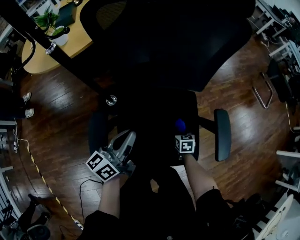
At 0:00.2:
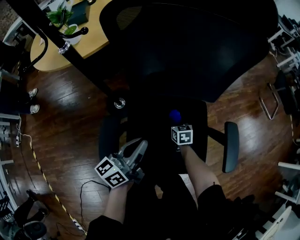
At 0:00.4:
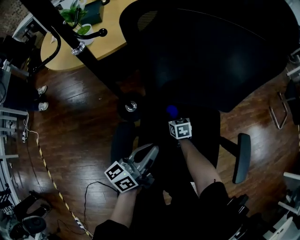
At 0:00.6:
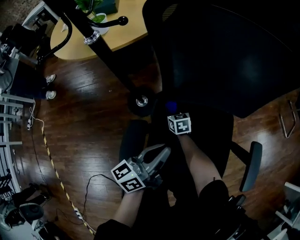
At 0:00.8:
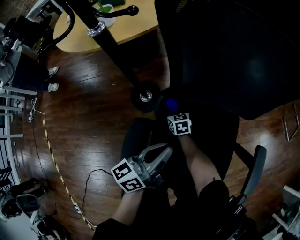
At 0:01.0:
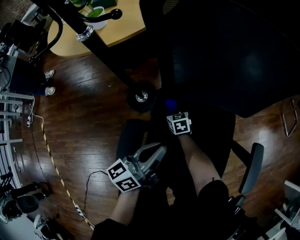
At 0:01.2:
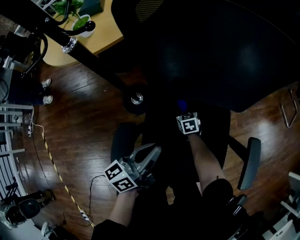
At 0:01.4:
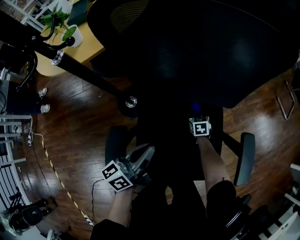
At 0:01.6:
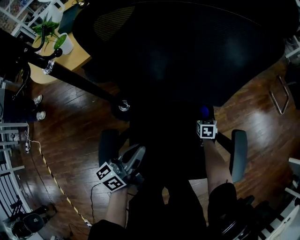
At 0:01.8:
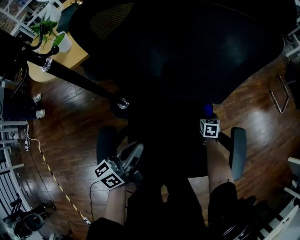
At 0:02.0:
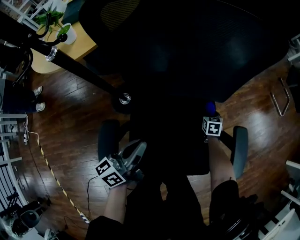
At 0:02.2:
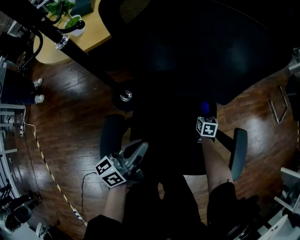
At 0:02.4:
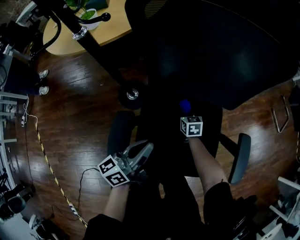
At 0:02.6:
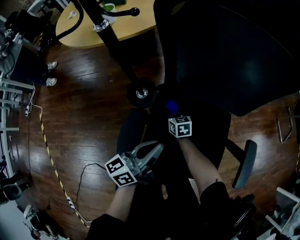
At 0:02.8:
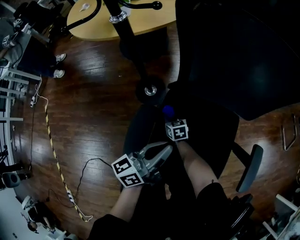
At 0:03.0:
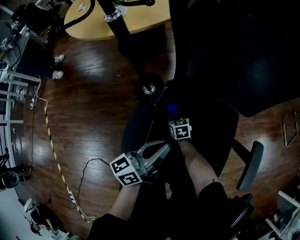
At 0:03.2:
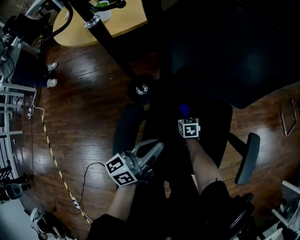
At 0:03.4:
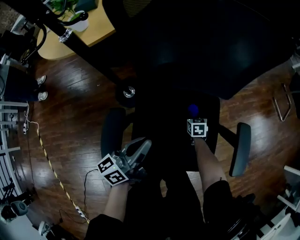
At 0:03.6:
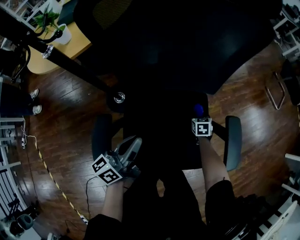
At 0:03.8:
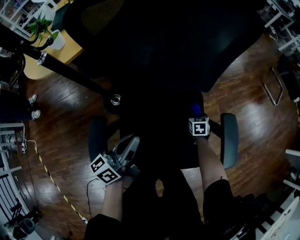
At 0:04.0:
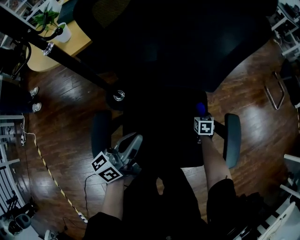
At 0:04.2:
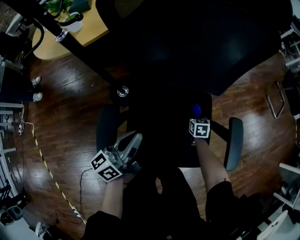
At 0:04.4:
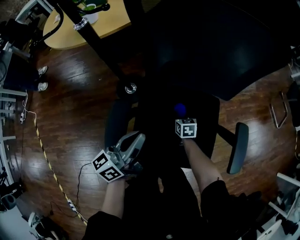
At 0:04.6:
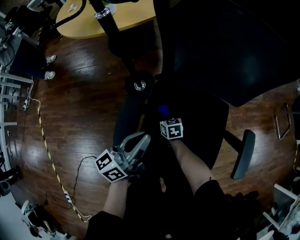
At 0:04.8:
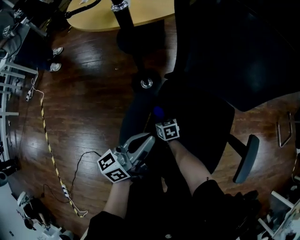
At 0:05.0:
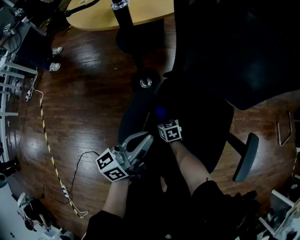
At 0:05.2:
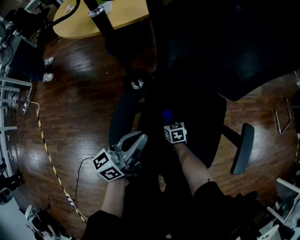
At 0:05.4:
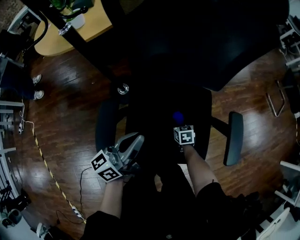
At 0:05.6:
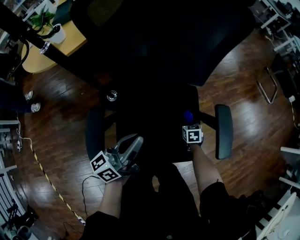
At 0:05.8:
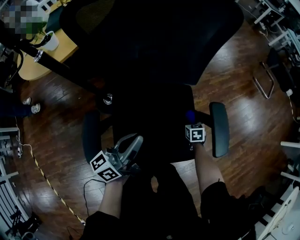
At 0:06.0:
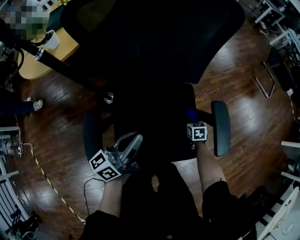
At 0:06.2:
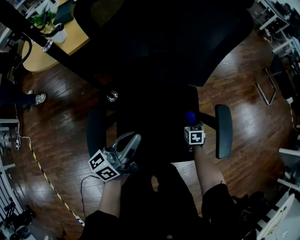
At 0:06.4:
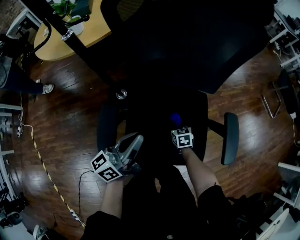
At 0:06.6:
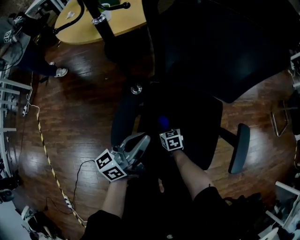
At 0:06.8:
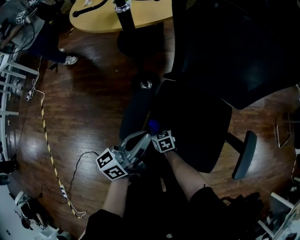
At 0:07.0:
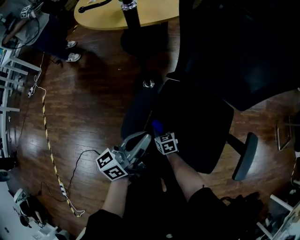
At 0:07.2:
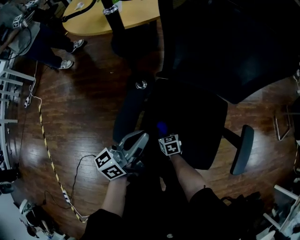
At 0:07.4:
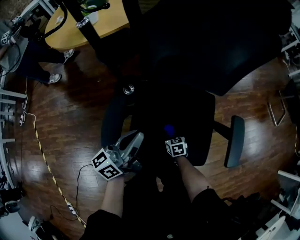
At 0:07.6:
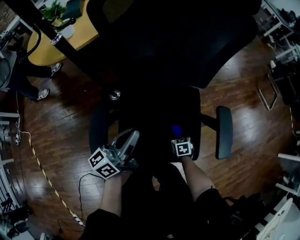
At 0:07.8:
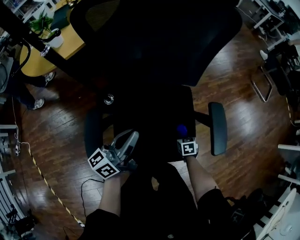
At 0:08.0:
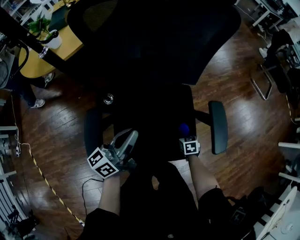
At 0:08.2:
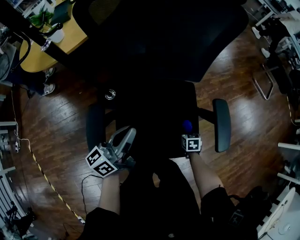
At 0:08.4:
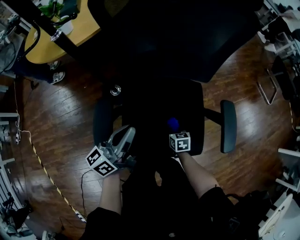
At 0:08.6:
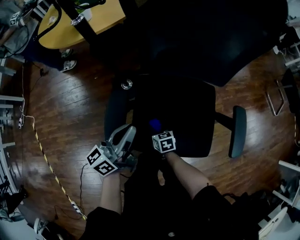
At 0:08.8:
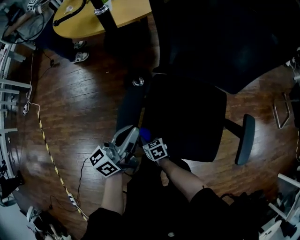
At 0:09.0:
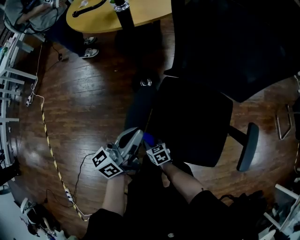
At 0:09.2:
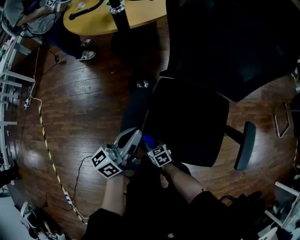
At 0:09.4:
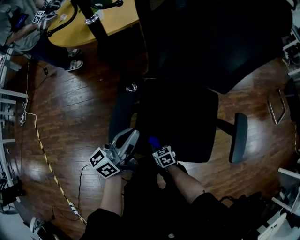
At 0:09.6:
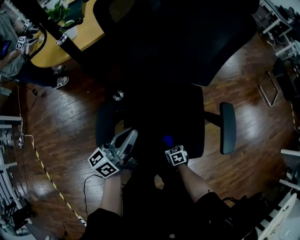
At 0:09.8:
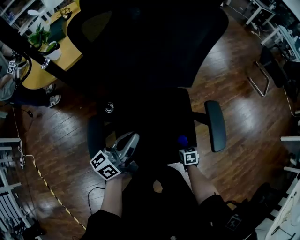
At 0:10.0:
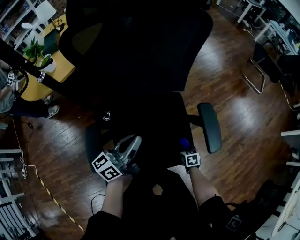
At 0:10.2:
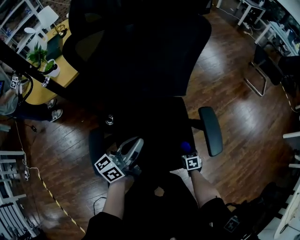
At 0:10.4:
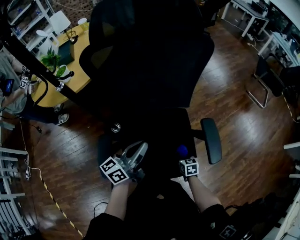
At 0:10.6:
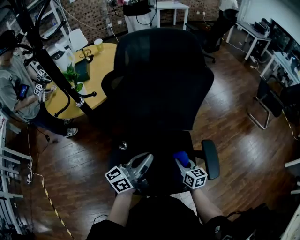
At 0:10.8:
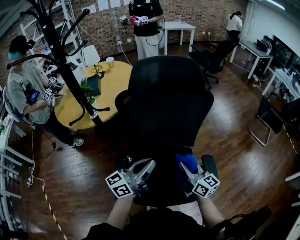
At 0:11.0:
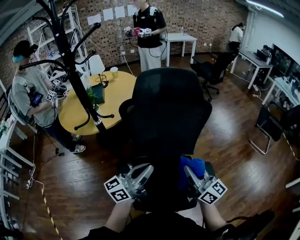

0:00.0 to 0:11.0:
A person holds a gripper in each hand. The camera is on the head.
0:00.0 to 0:01.6: The right gripper shifts some 15 cm forward, and travels to the left and back again, about 30 cm each way. Meanwhile the left gripper ends up approximately 5 cm from where it was.
0:01.6 to 0:03.2: The left gripper shifts by roughly 5 cm, while the right gripper turns by approximately 20 degrees.
0:03.2 to 0:04.8: The left gripper ends up roughly 5 cm from where it was, while the right gripper shifts by roughly 20 cm, and changes its angle by about 20 degrees.
0:04.8 to 0:06.2: The left gripper changes place by roughly 10 cm, while the right gripper ends up approximately 40 cm from where it was, and swivels approximately 40 degrees.
0:07.8 to 0:09.4: The right gripper shifts by some 30 cm, and rotates approximately 30 degrees; the left gripper shifts by approximately 15 cm.
0:09.4 to 0:11.0: The left gripper is displaced upward by about 25 cm, and swivels approximately 30 degrees. Meanwhile the right gripper travels upward by approximately 50 cm, and tips its fingers upward by some 70 degrees.

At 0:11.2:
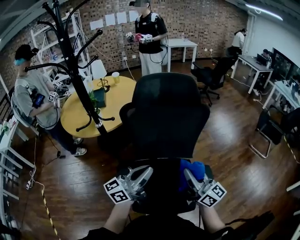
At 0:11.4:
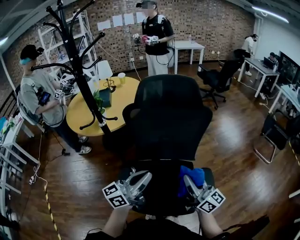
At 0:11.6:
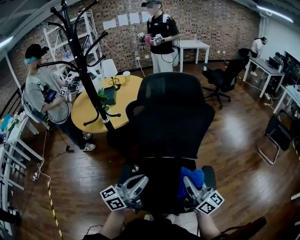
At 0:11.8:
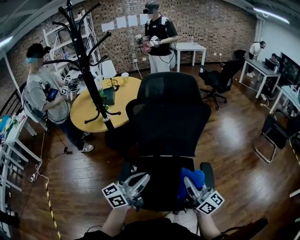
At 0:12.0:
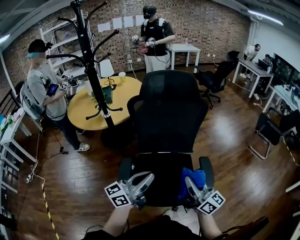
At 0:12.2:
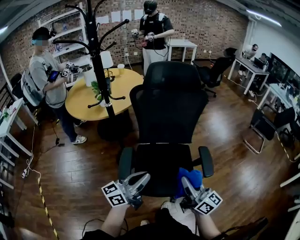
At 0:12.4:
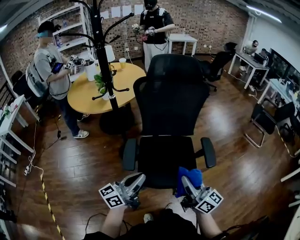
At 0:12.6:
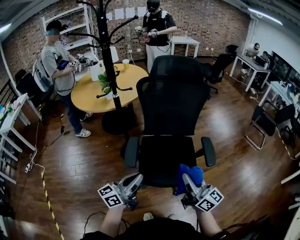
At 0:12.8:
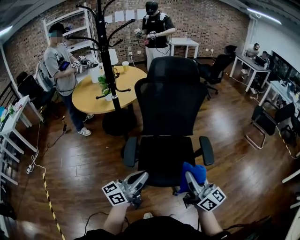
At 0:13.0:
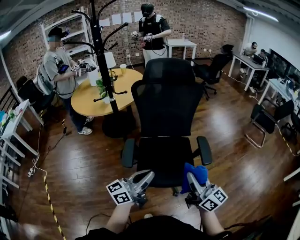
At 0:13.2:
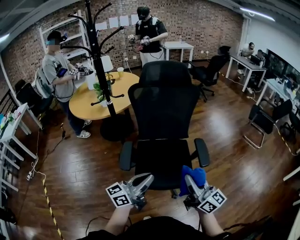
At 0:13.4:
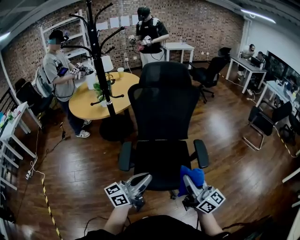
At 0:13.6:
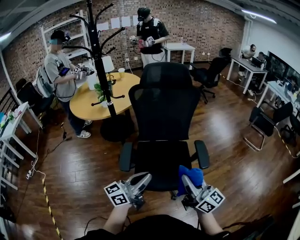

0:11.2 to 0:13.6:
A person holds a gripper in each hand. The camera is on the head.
0:11.2 to 0:12.4: Both grippers move backward, some 25 cm.
0:12.4 to 0:13.6: The right gripper moves about 5 cm, while the left gripper shifts approximately 5 cm to the right.

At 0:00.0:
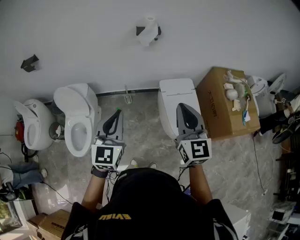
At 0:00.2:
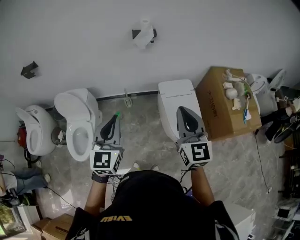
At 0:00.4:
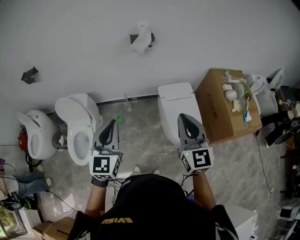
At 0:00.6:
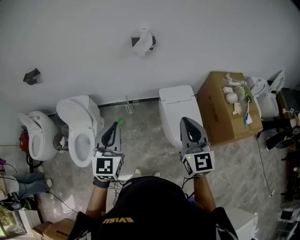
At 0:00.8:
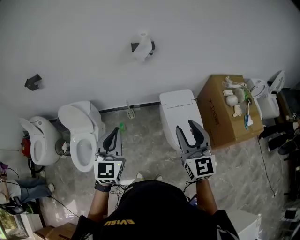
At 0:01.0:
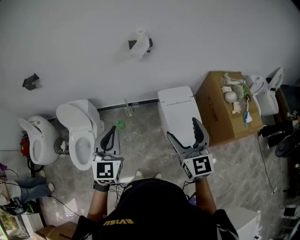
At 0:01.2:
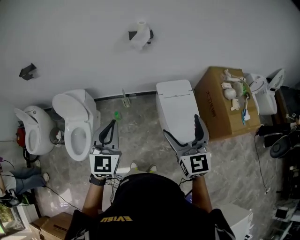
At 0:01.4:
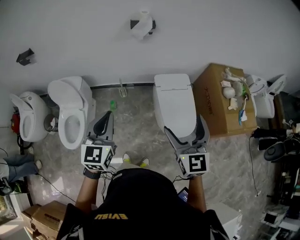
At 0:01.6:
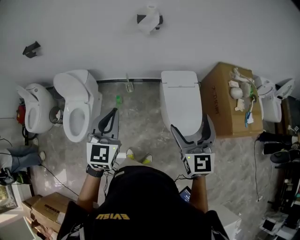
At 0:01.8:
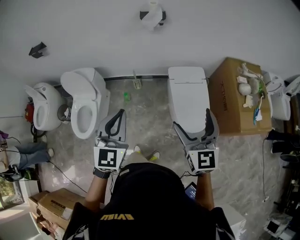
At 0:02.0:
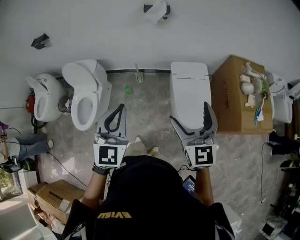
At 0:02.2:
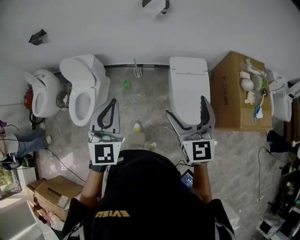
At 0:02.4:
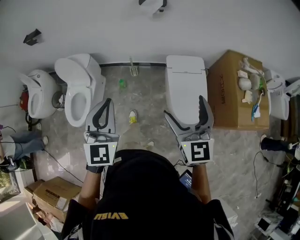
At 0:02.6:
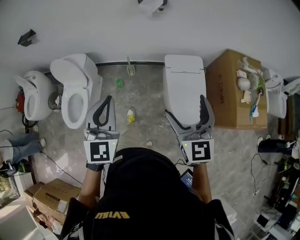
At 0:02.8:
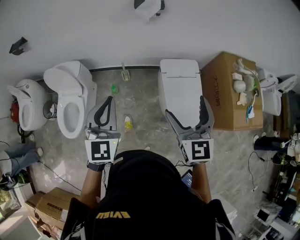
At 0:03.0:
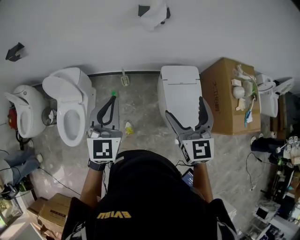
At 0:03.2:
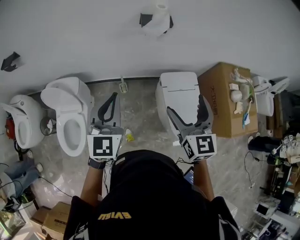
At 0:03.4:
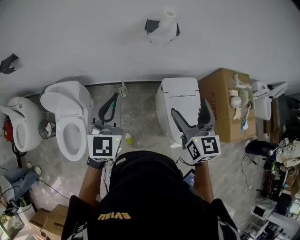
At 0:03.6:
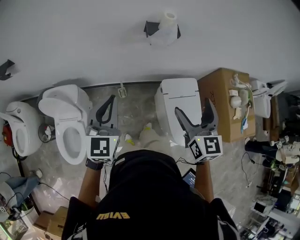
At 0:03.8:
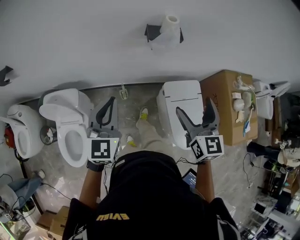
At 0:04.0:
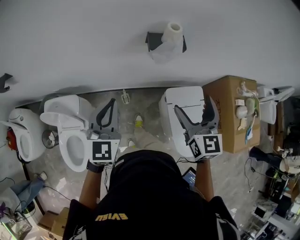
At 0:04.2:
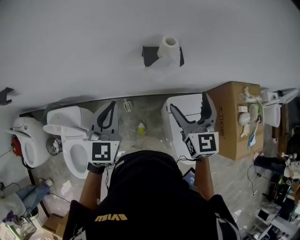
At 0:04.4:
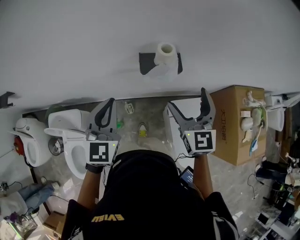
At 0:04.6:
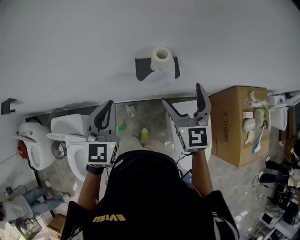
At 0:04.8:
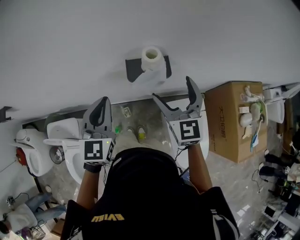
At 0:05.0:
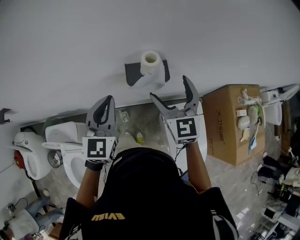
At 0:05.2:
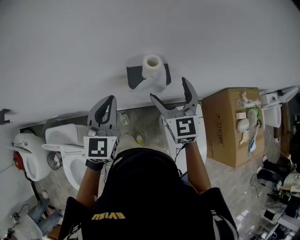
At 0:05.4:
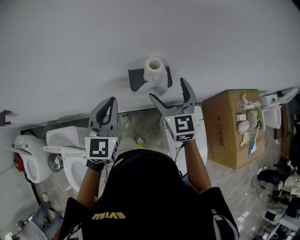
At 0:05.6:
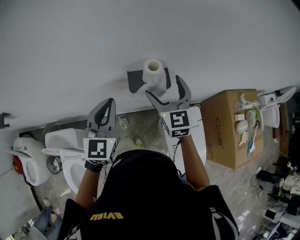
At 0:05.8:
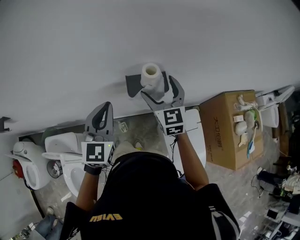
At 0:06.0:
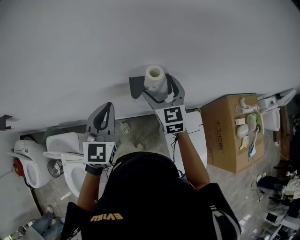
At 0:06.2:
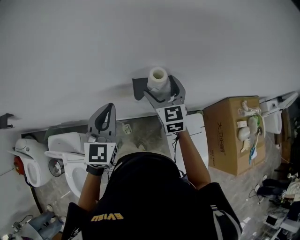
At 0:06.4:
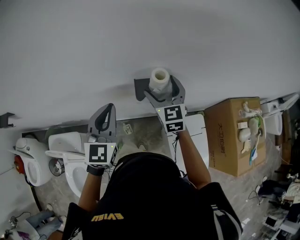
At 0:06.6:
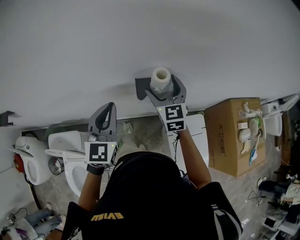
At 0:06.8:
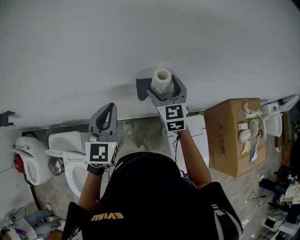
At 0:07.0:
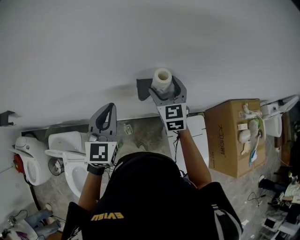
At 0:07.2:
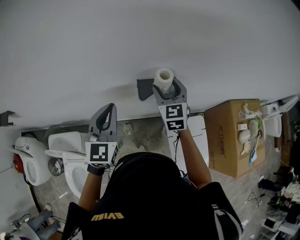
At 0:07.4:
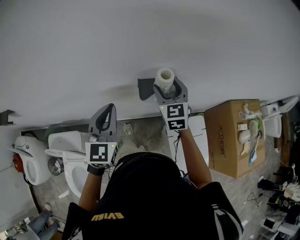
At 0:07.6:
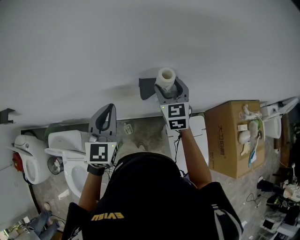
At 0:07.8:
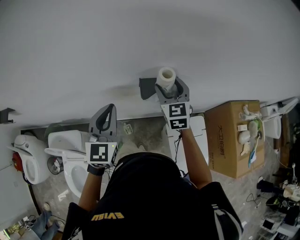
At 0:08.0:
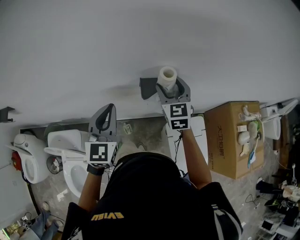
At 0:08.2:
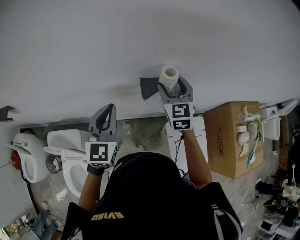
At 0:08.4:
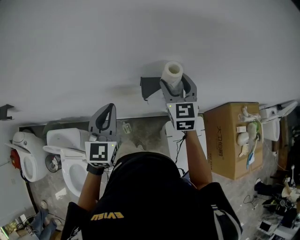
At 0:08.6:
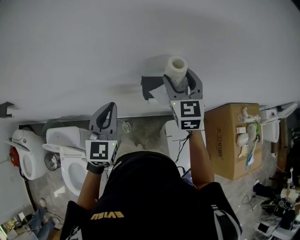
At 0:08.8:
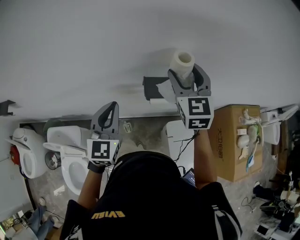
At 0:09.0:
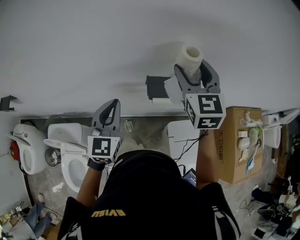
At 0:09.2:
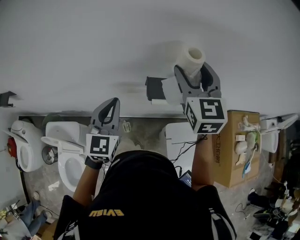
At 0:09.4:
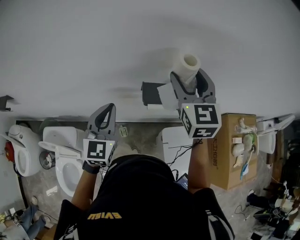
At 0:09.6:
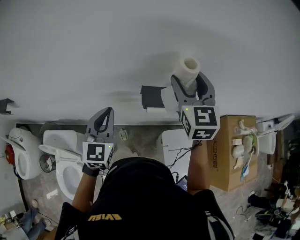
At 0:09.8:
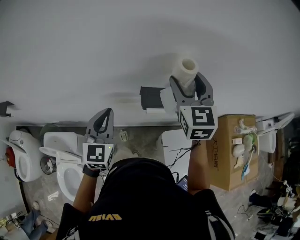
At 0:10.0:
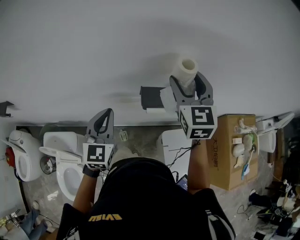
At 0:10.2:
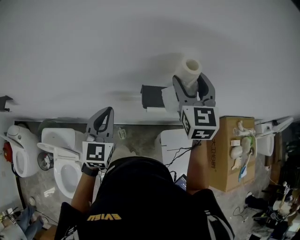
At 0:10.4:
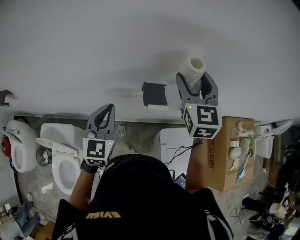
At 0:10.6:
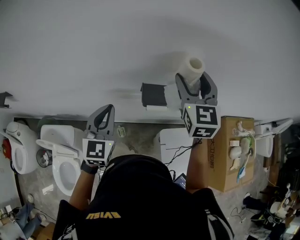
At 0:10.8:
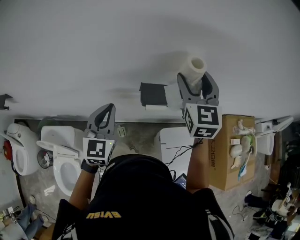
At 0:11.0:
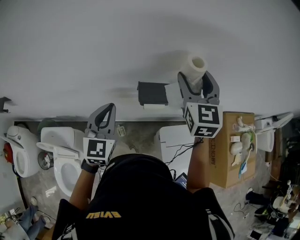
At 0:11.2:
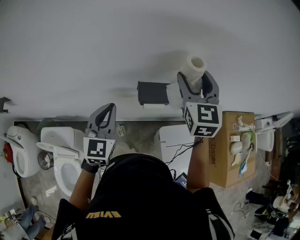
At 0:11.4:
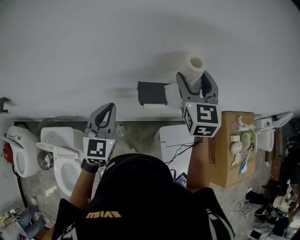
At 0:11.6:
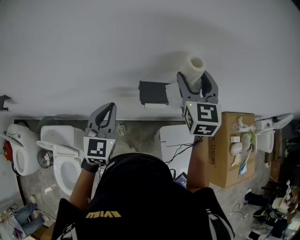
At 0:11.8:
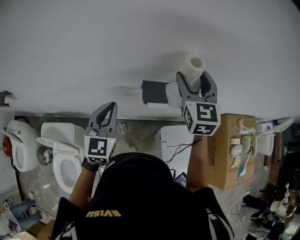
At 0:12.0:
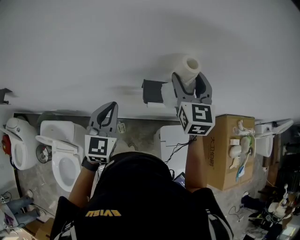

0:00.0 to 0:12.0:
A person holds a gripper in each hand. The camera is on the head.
0:00.0 to 0:01.6: The left gripper changes place by some 5 cm, while the right gripper shifts some 10 cm to the right, and opens up.
0:01.6 to 0:03.0: Both grippers move forward, about 15 cm.
0:03.0 to 0:04.4: The grippers both shift forward by about 35 cm.
0:04.4 to 0:06.0: The left gripper shifts roughly 5 cm forward. The right gripper travels forward by approximately 15 cm.
0:06.0 to 0:07.6: The right gripper closes its fingers.
0:07.6 to 0:09.0: The right gripper goes some 15 cm upward.
0:09.0 to 0:12.0: The grippers make only small movements.
